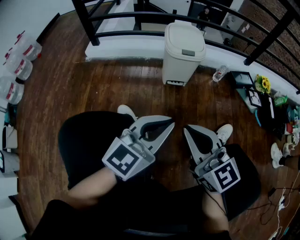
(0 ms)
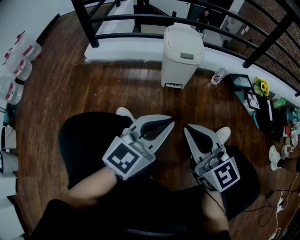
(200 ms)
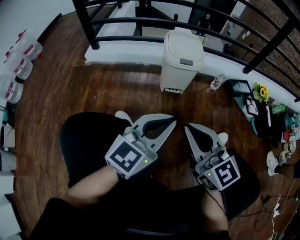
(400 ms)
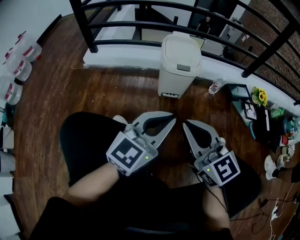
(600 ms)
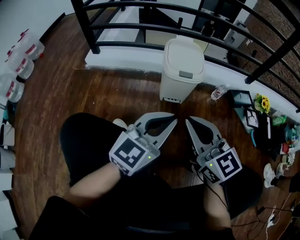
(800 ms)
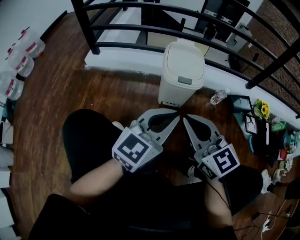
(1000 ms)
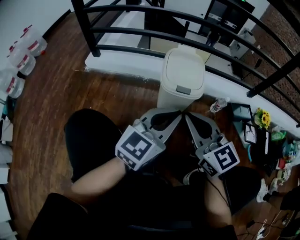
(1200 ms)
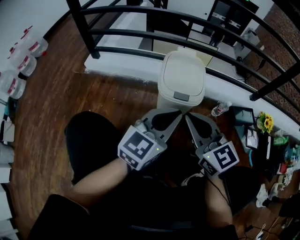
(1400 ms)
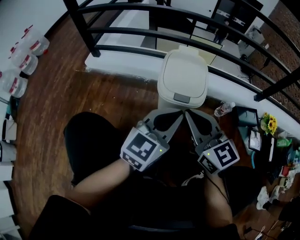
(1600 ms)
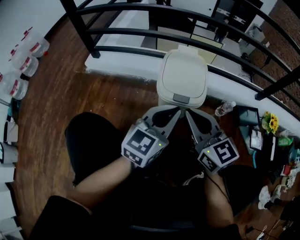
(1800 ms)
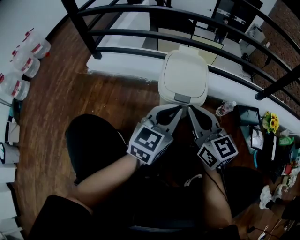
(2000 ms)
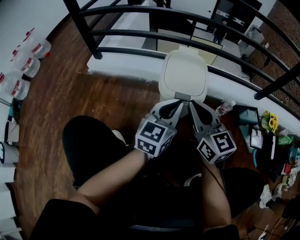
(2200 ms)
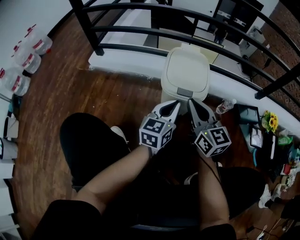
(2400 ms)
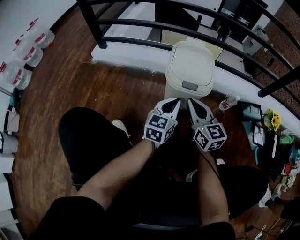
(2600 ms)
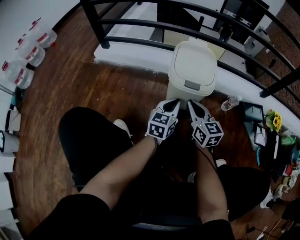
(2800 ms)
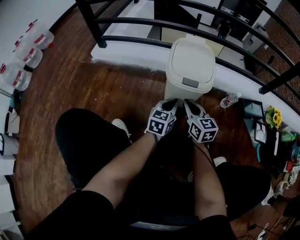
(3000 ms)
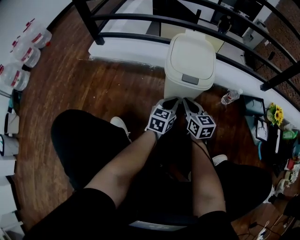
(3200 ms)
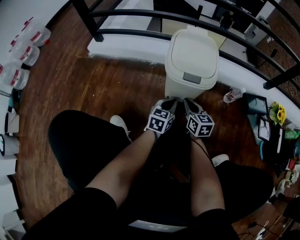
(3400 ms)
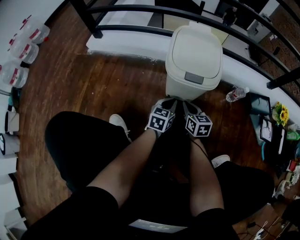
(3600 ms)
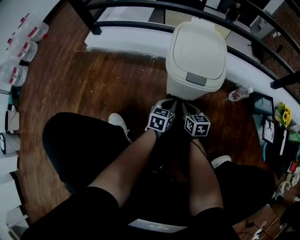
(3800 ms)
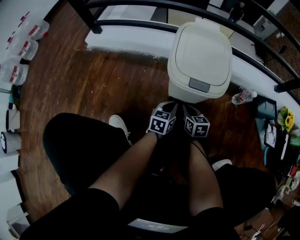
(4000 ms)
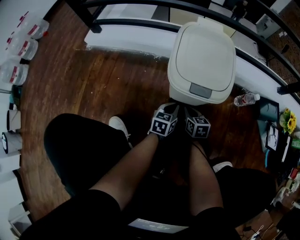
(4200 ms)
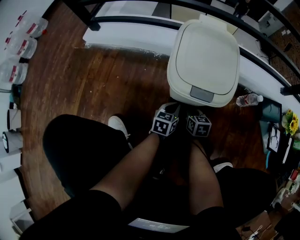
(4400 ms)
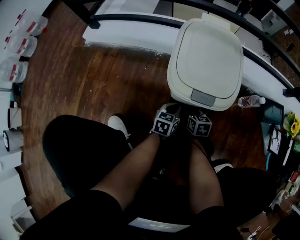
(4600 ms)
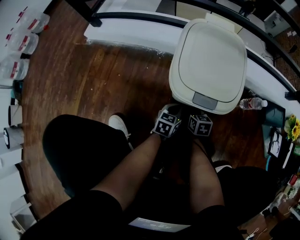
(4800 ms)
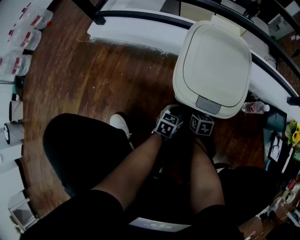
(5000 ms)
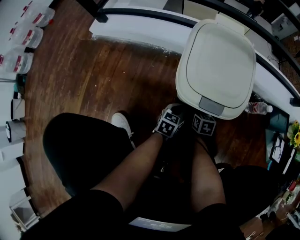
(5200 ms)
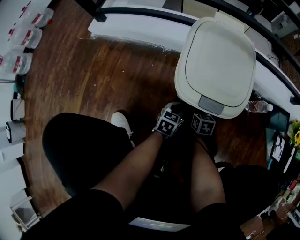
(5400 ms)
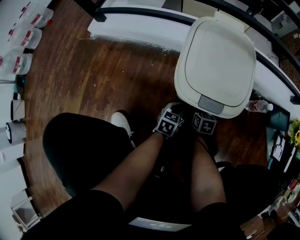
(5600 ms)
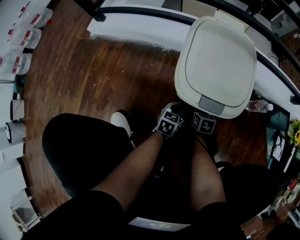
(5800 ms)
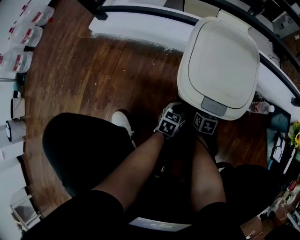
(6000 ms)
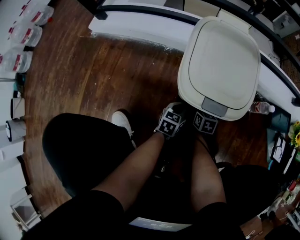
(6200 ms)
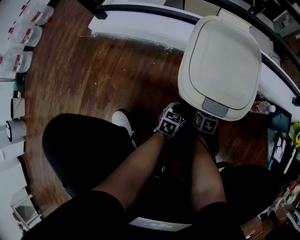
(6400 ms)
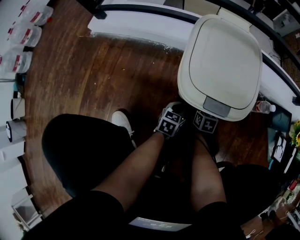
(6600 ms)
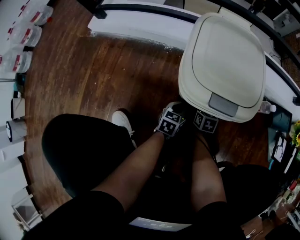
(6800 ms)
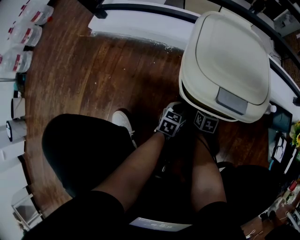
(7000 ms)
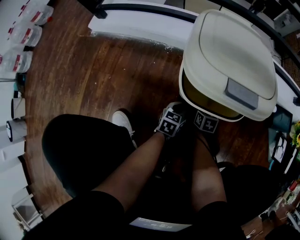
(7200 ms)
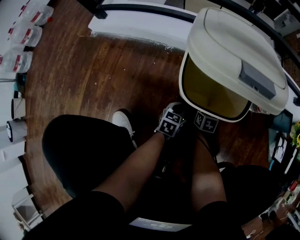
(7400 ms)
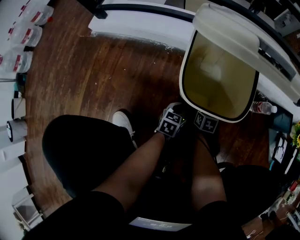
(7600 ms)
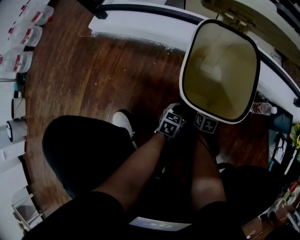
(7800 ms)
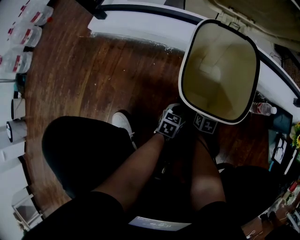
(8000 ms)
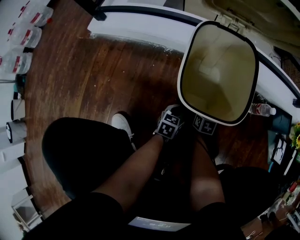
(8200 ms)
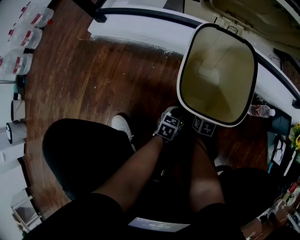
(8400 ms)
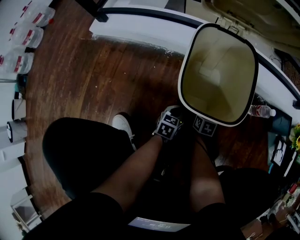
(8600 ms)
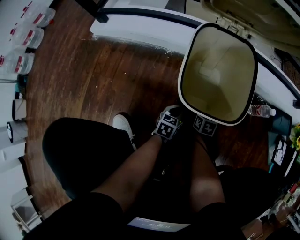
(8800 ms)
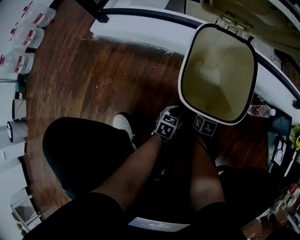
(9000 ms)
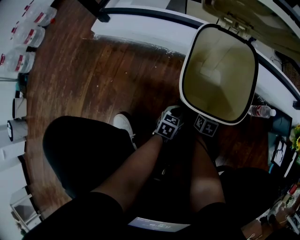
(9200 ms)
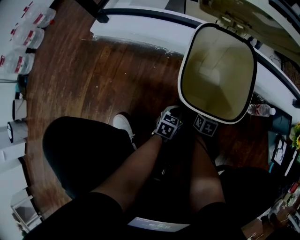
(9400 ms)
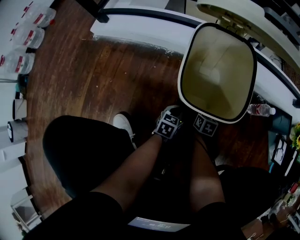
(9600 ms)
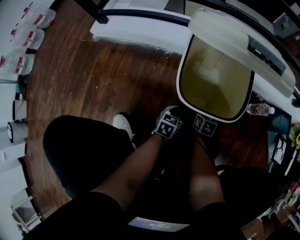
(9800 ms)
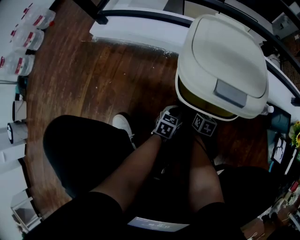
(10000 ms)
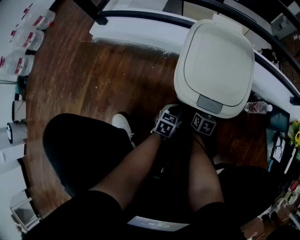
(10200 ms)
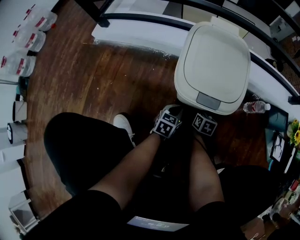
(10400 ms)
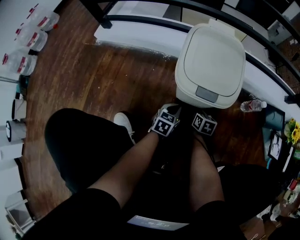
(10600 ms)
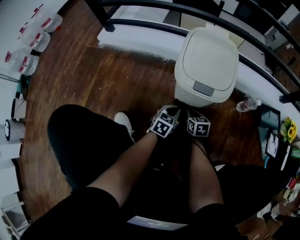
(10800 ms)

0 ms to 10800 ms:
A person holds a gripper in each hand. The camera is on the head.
0 ms to 1600 ms: Both grippers move forward, approximately 35 cm.
1600 ms to 3000 ms: The grippers both shift downward by about 20 cm. The left gripper swivels about 20 degrees.
3000 ms to 4600 ms: The two grippers go roughly 25 cm downward. The right gripper rotates about 30 degrees.
4600 ms to 6200 ms: The right gripper travels downward by approximately 5 cm.
6200 ms to 9200 ms: The grippers stay close to where they were, moving slightly.
9200 ms to 10800 ms: Both grippers move upward and backward, approximately 10 cm.

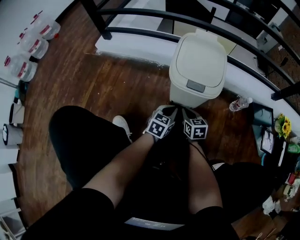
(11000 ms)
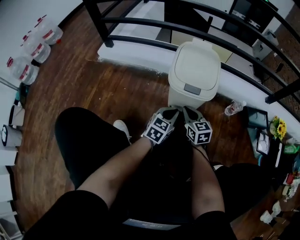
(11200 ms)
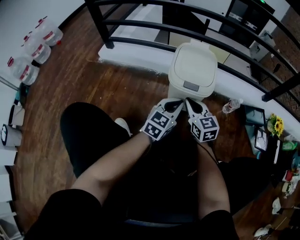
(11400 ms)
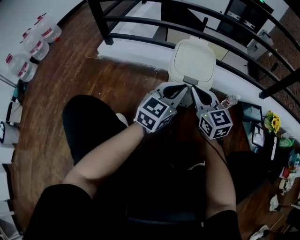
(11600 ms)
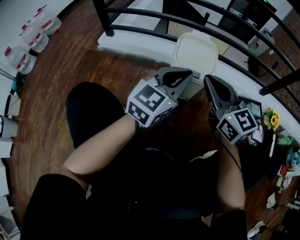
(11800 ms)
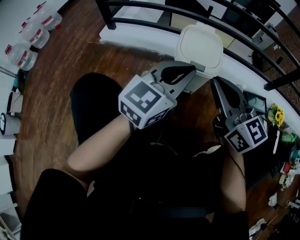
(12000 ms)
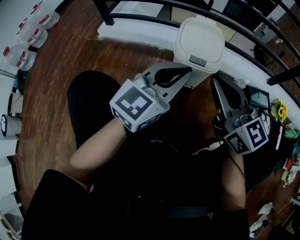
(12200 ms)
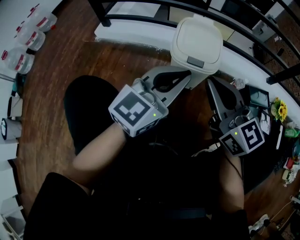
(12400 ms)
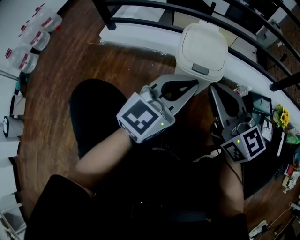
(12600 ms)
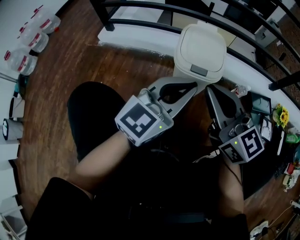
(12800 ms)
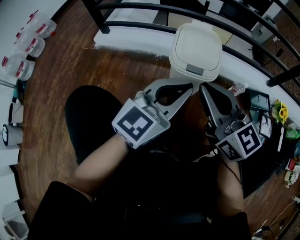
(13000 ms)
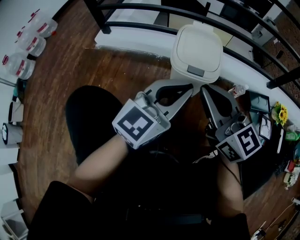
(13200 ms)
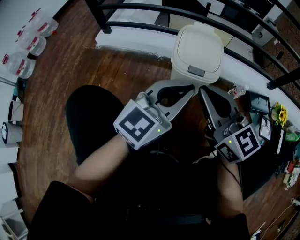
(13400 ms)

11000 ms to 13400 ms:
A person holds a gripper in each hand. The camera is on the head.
11000 ms to 12200 ms: The grippers both shift upward by some 40 cm. The right gripper tilts its fingers about 40 degrees upward. The left gripper tips its fingers upward by approximately 30 degrees.
12200 ms to 13400 ms: There are only small adjustments of the grippers.

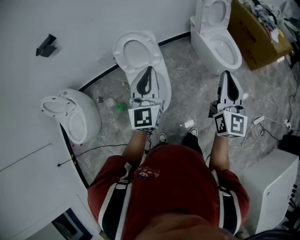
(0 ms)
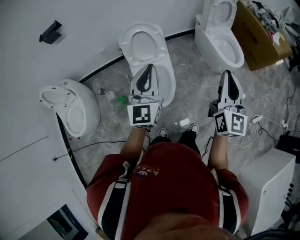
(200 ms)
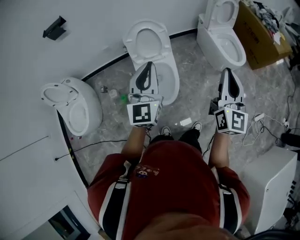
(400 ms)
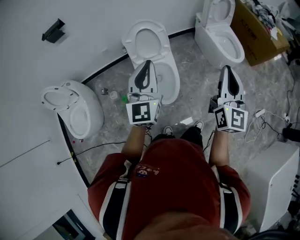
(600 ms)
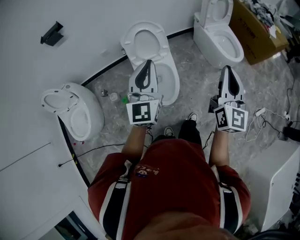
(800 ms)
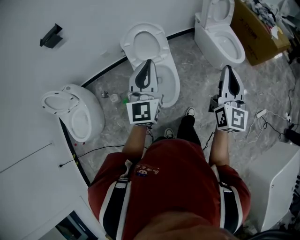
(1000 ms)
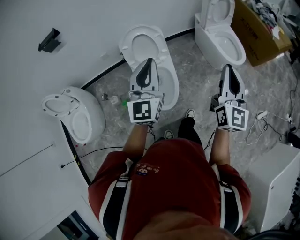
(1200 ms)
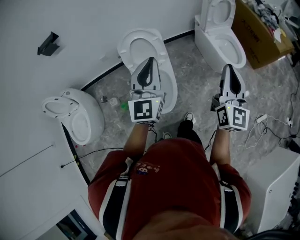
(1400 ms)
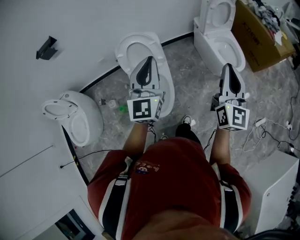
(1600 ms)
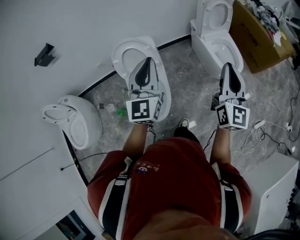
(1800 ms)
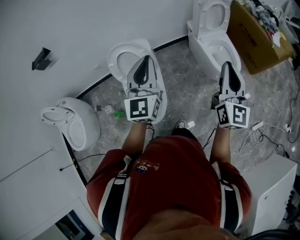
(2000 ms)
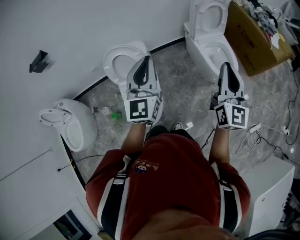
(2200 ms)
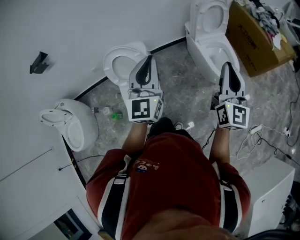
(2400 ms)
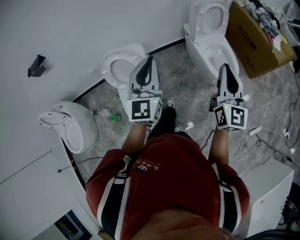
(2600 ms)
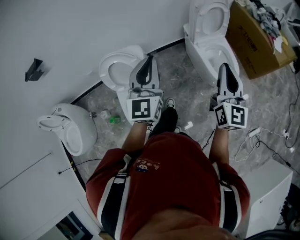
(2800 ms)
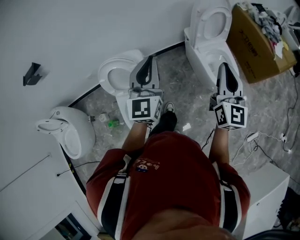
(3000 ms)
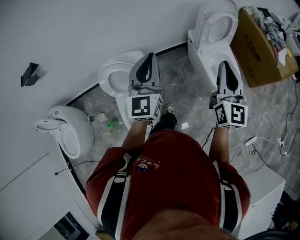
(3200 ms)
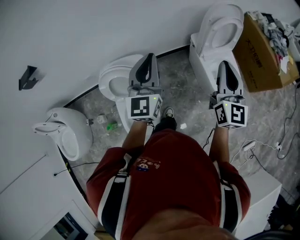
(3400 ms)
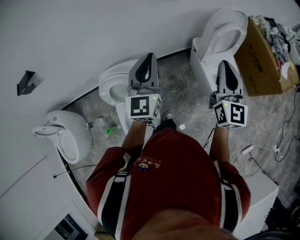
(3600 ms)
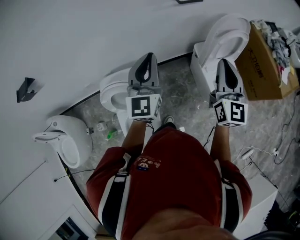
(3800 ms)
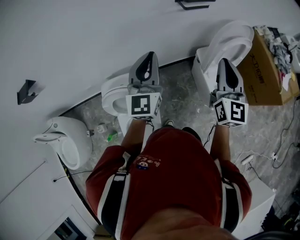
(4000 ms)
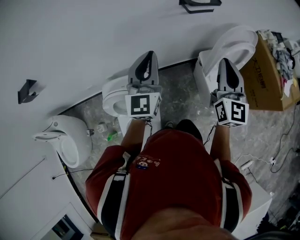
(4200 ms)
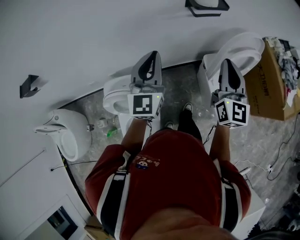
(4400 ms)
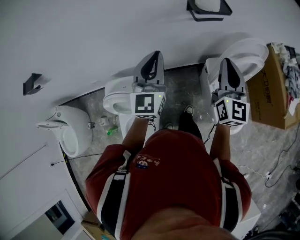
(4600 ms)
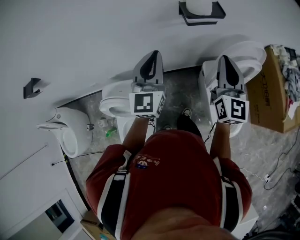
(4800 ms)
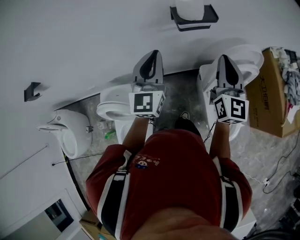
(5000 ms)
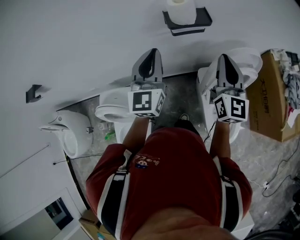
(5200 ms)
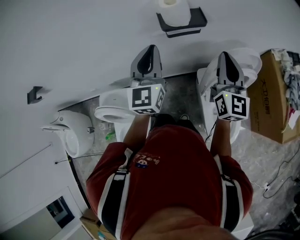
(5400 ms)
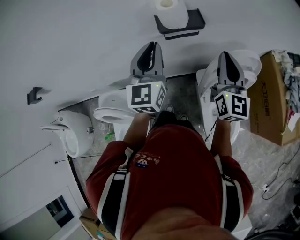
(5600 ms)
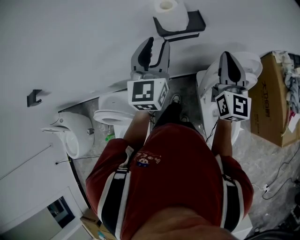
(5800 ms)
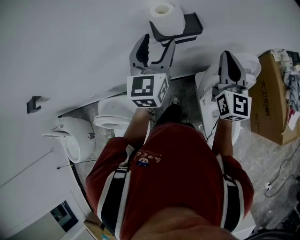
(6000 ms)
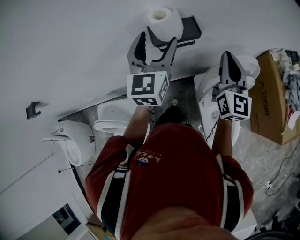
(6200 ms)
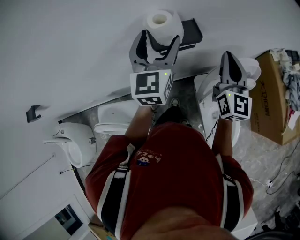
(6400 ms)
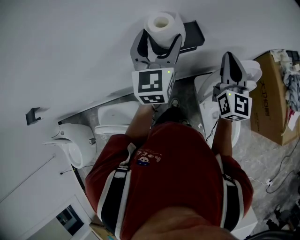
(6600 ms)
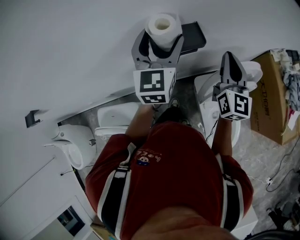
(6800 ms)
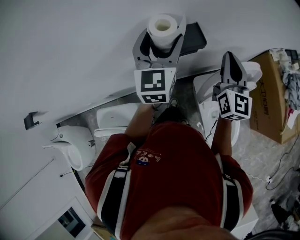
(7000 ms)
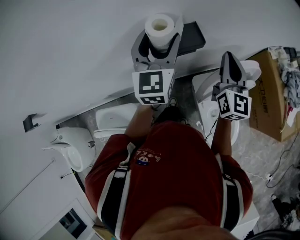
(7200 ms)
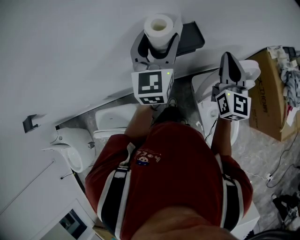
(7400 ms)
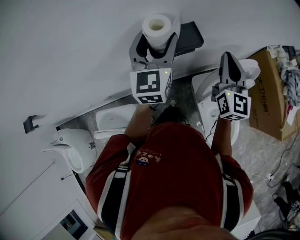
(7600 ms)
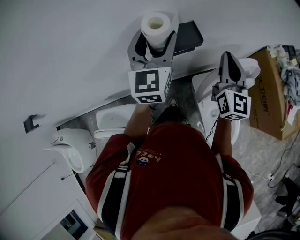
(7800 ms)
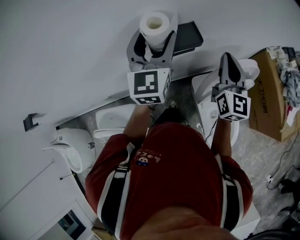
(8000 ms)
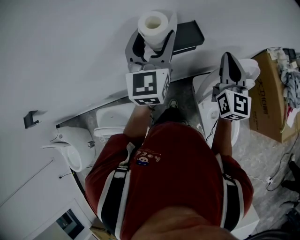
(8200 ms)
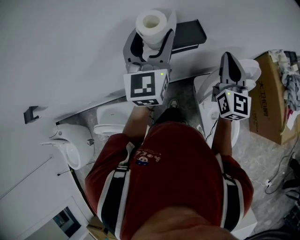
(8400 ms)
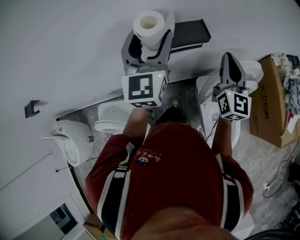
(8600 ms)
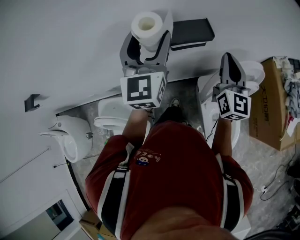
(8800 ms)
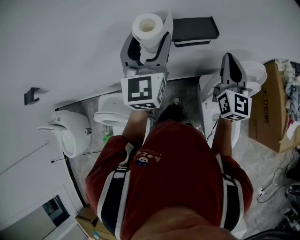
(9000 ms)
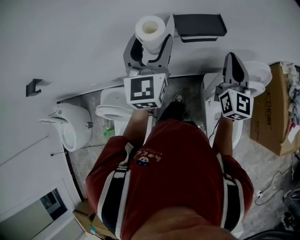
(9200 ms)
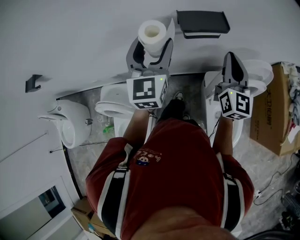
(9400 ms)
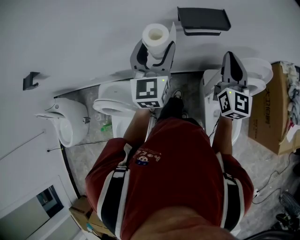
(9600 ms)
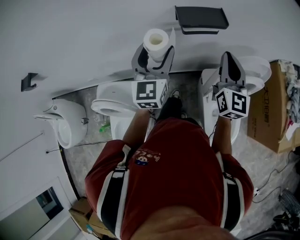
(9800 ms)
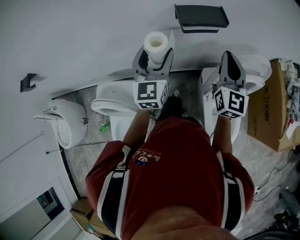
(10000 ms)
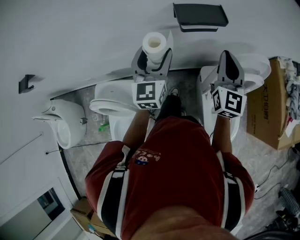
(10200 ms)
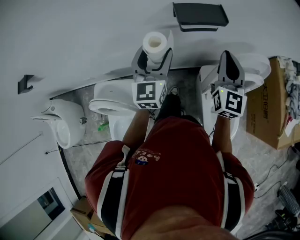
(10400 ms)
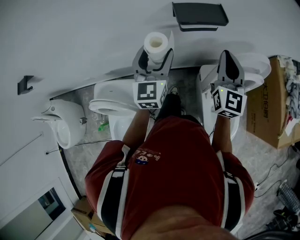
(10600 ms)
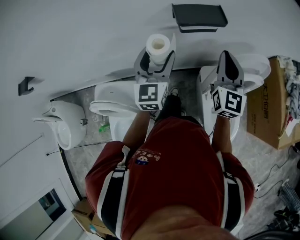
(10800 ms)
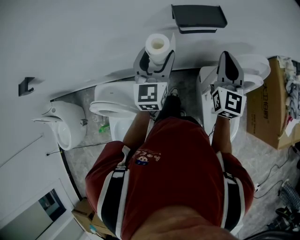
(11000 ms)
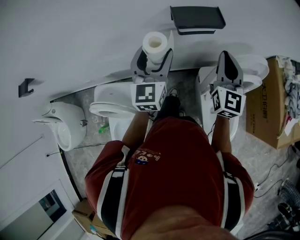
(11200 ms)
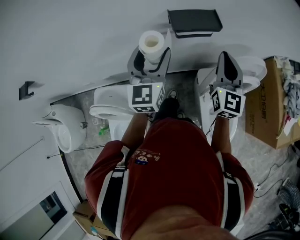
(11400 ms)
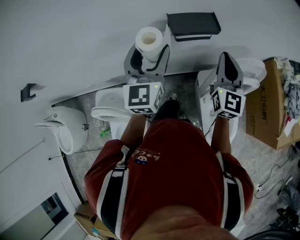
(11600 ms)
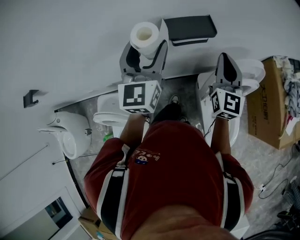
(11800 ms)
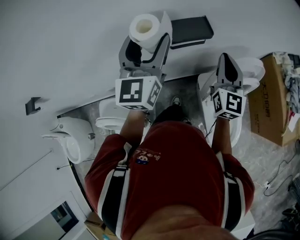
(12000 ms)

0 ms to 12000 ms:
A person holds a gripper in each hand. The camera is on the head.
0 ms to 1600 ms: The grippers both shift forward by approximately 5 cm.
1600 ms to 3000 ms: Both grippers travel together forward and to the right, approximately 30 cm.
3000 ms to 4400 ms: Both grippers travel together forward, about 35 cm.
4400 ms to 6000 ms: The two grippers go roughly 30 cm forward and to the right. The left gripper opens up.
6000 ms to 7600 ms: Both grippers move forward, about 10 cm.
7600 ms to 9000 ms: The left gripper heads backward and to the left, covering some 15 cm; the right gripper goes approximately 5 cm backward.
9000 ms to 10400 ms: The right gripper shifts by some 5 cm; the left gripper heads downward, covering roughly 15 cm.
10400 ms to 12000 ms: The left gripper travels upward and forward by roughly 15 cm; the right gripper moves about 5 cm.
